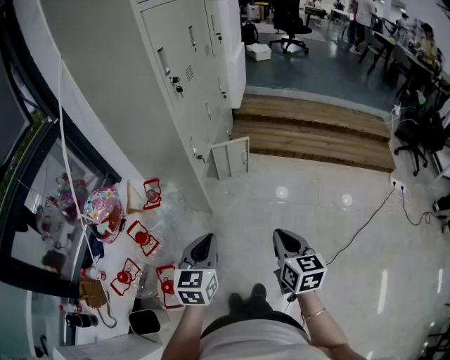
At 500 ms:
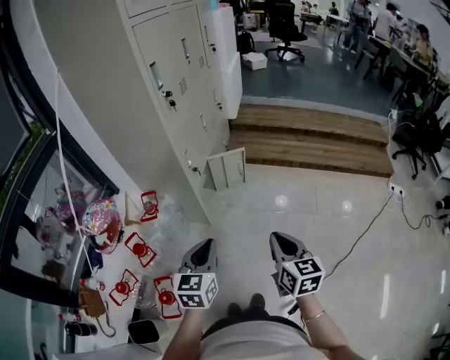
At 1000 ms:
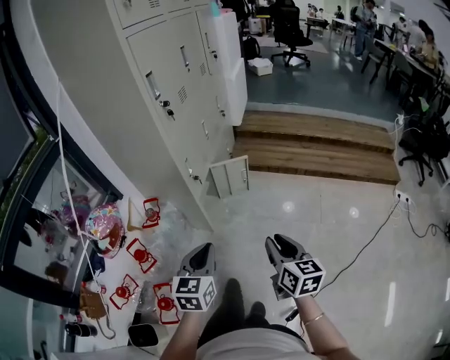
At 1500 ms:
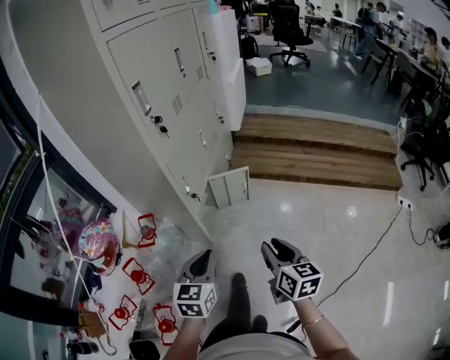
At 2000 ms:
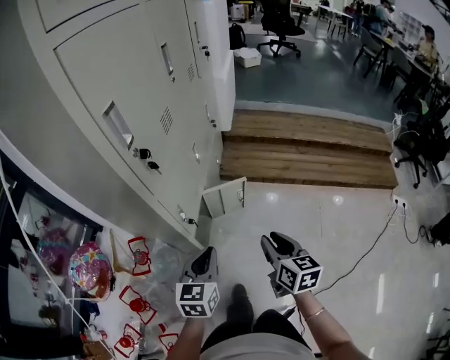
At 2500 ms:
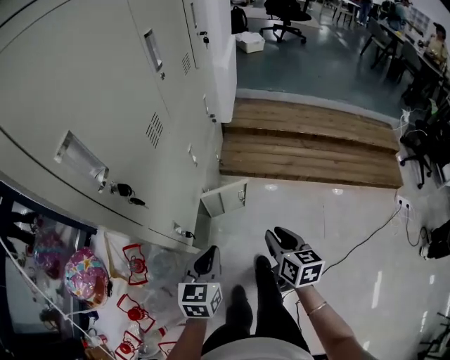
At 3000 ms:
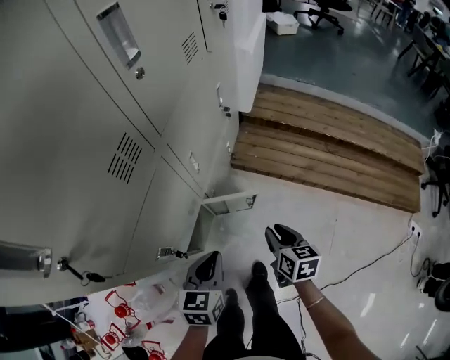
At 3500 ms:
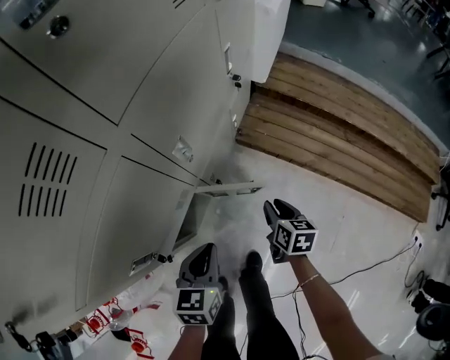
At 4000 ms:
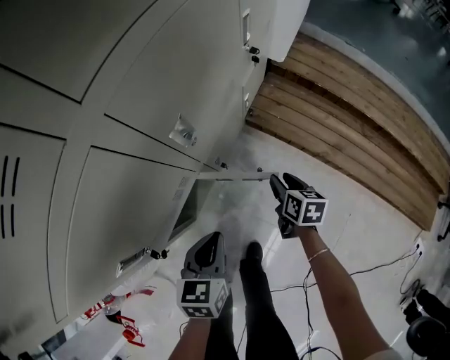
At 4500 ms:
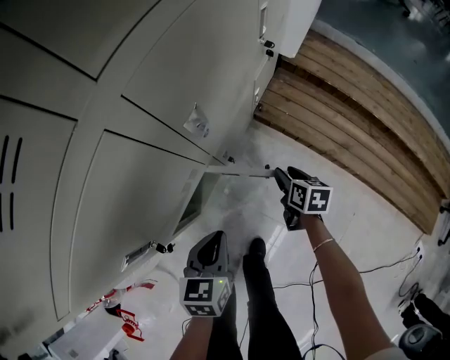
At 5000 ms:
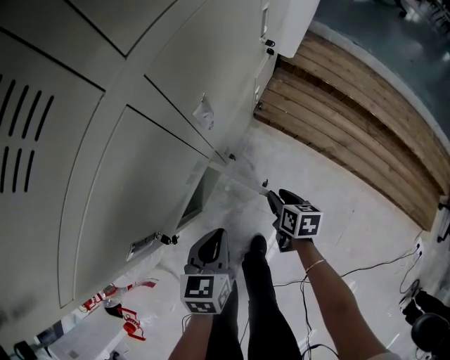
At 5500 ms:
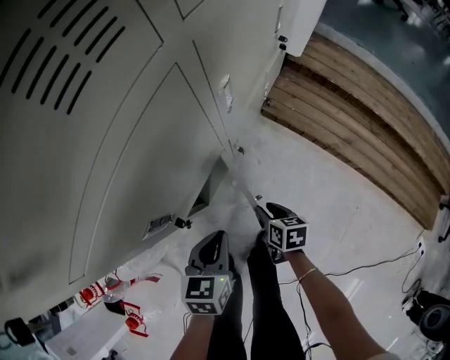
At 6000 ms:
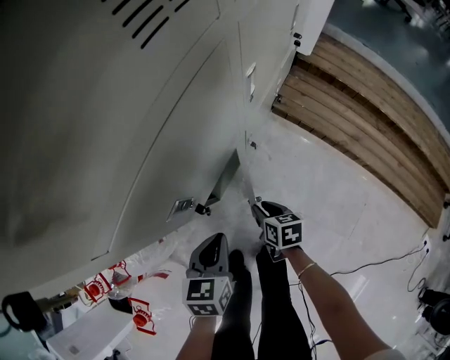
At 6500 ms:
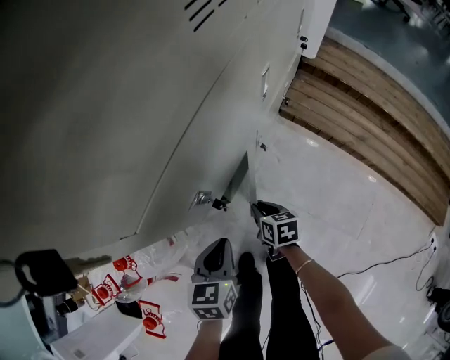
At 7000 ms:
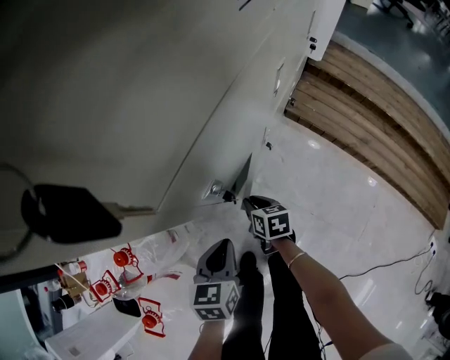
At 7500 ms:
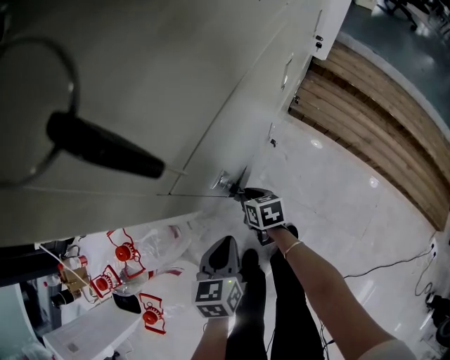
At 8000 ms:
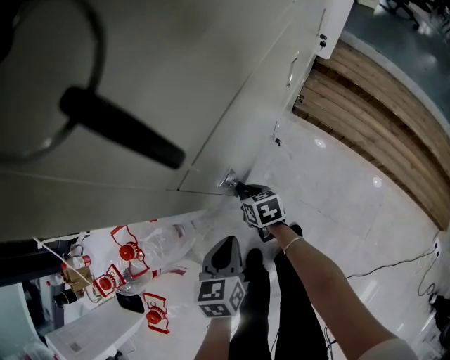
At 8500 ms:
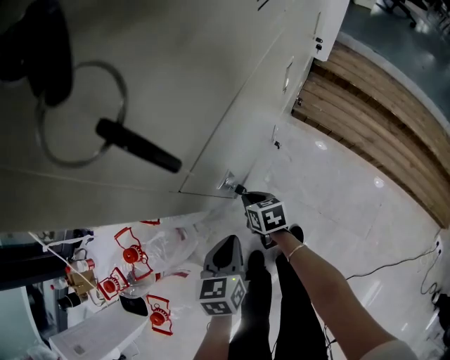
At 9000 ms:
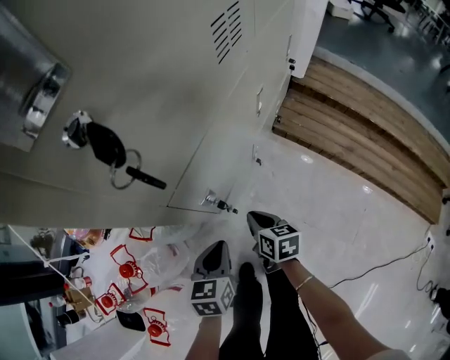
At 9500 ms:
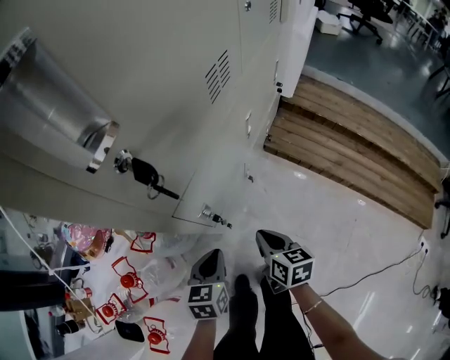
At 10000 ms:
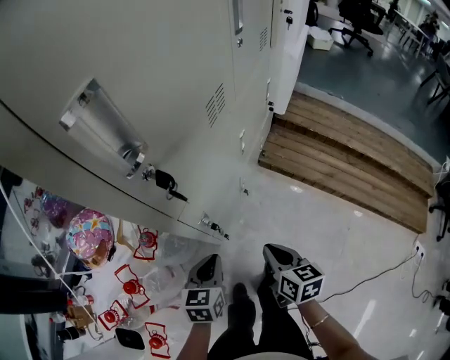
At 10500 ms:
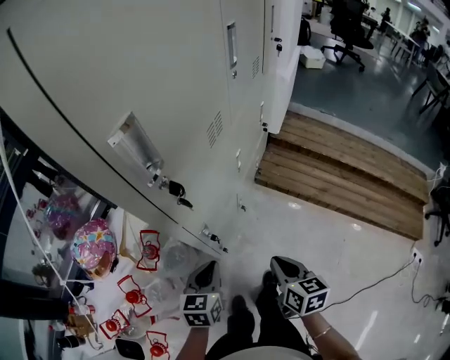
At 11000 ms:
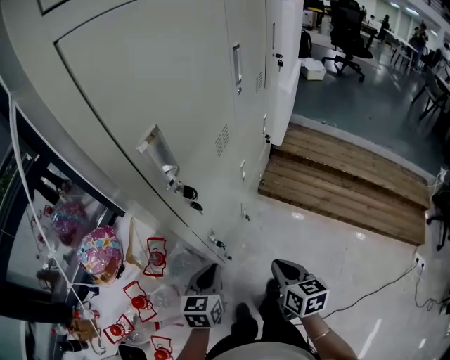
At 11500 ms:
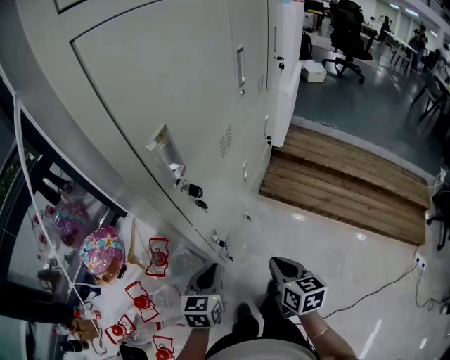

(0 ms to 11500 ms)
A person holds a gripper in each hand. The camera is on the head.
0 ms - 2000 ms: Both grippers move forward, approximately 35 cm. The right gripper opens its fingers.
2000 ms - 4000 ms: Both grippers travel together forward and downward, about 50 cm. The left gripper rotates approximately 30 degrees. Meanwhile the right gripper swivels some 30 degrees.
4000 ms - 6000 ms: The left gripper heads to the left and backward, covering approximately 20 cm. Meanwhile the right gripper heads to the left and backward, covering roughly 30 cm.
6000 ms - 7500 ms: The left gripper is displaced to the left by approximately 10 cm; the right gripper is displaced to the left by approximately 15 cm.
7500 ms - 9500 ms: The left gripper travels upward by some 10 cm, while the right gripper goes some 25 cm upward, to the right and backward.
9500 ms - 11500 ms: The right gripper is displaced upward and backward by about 20 cm; the left gripper travels upward by about 15 cm.

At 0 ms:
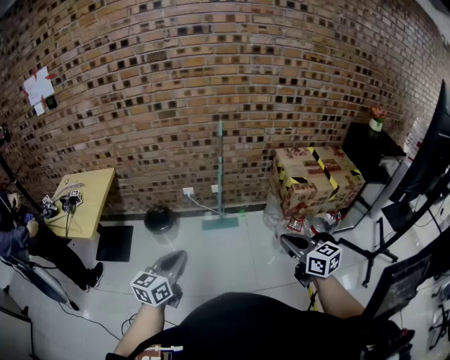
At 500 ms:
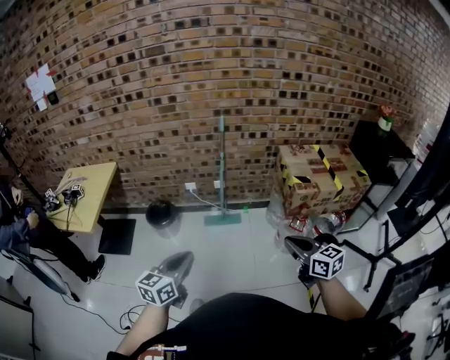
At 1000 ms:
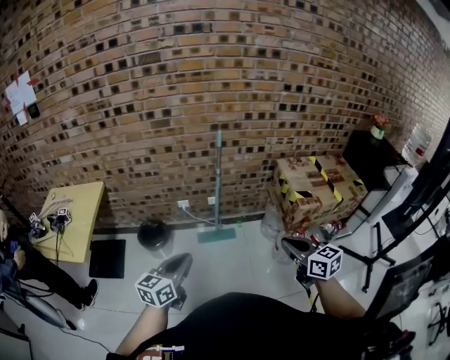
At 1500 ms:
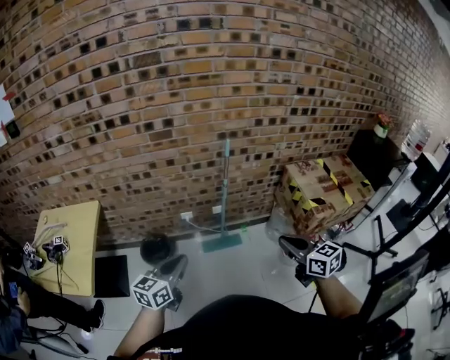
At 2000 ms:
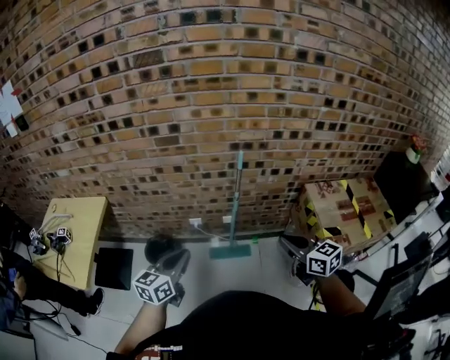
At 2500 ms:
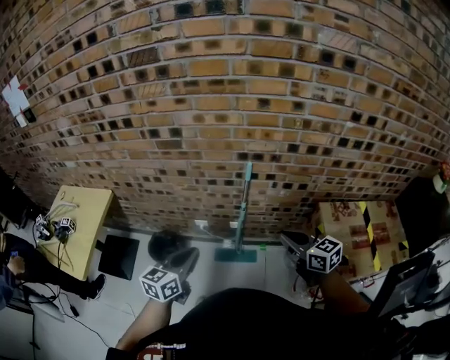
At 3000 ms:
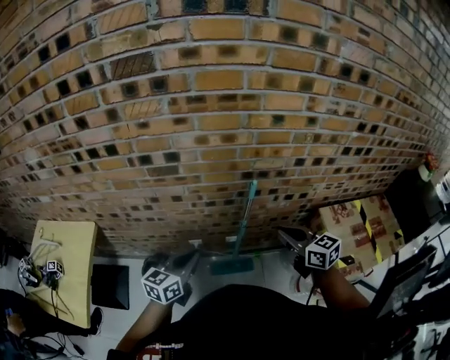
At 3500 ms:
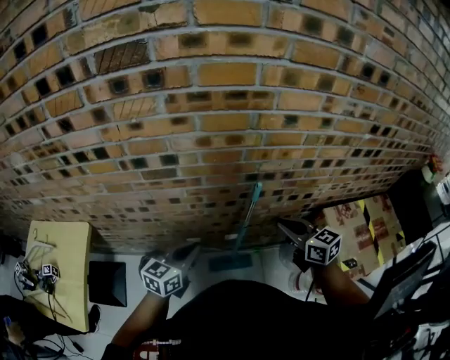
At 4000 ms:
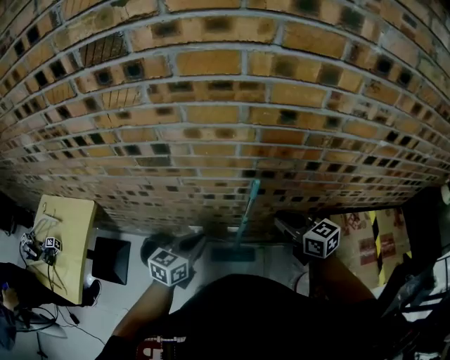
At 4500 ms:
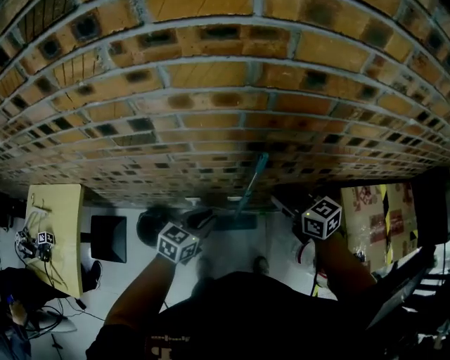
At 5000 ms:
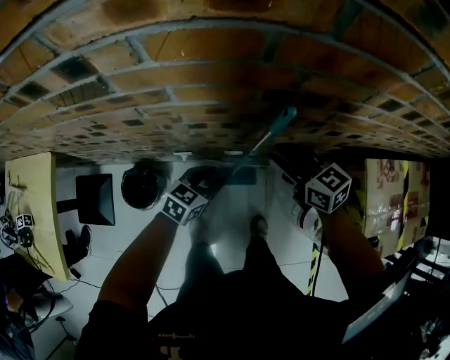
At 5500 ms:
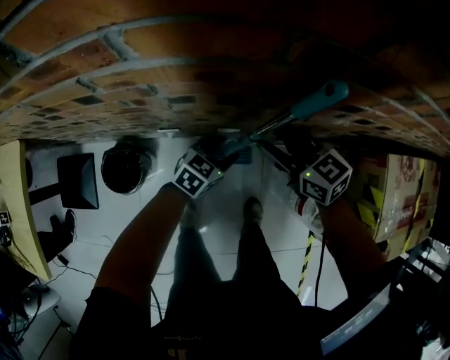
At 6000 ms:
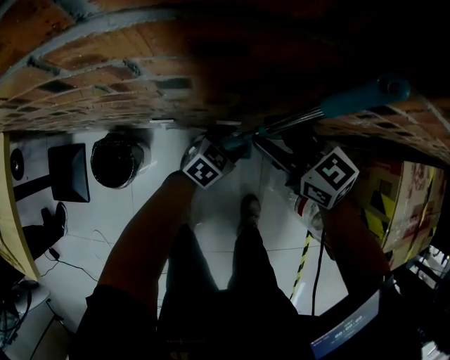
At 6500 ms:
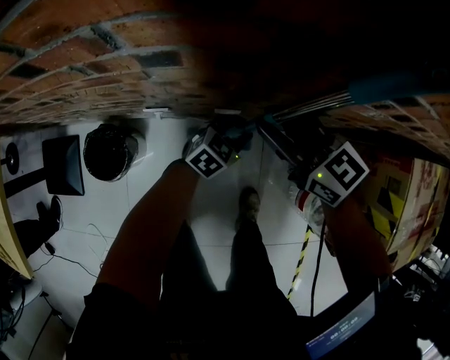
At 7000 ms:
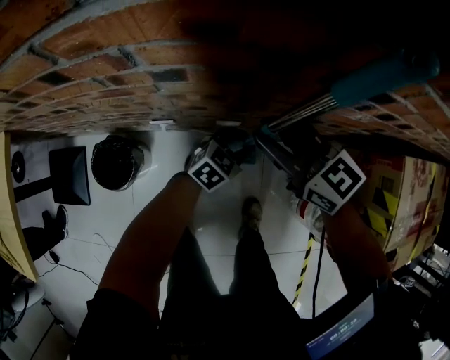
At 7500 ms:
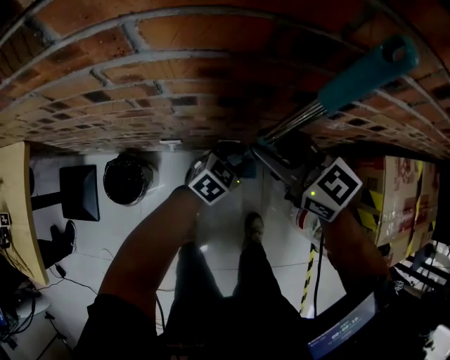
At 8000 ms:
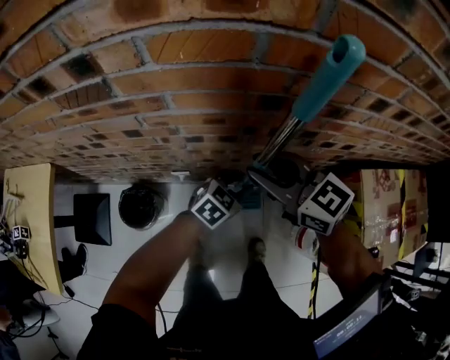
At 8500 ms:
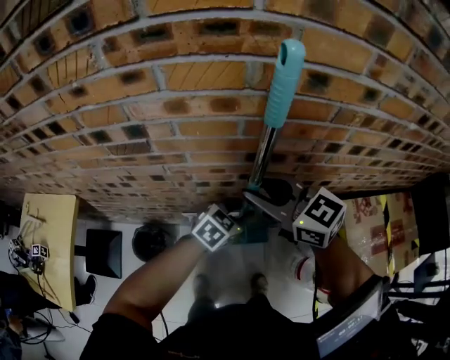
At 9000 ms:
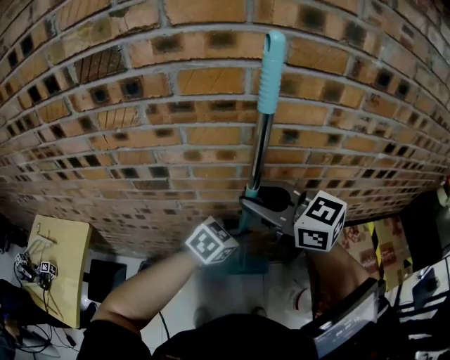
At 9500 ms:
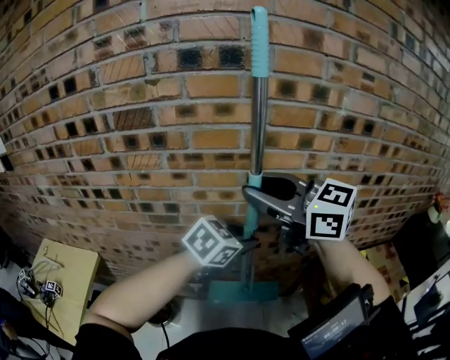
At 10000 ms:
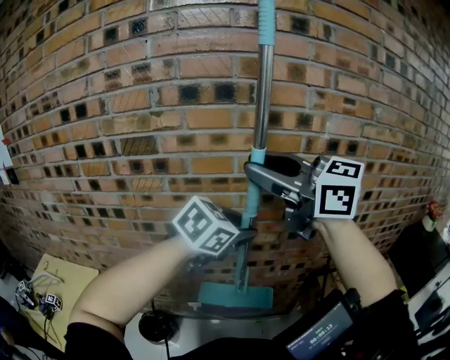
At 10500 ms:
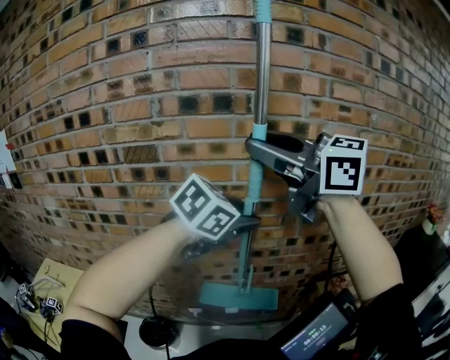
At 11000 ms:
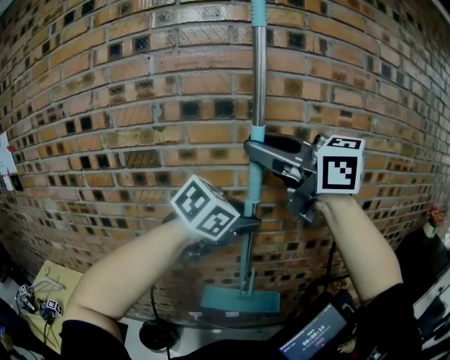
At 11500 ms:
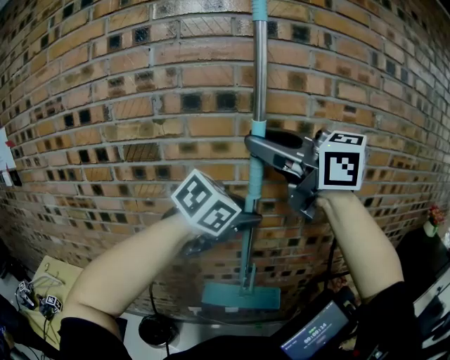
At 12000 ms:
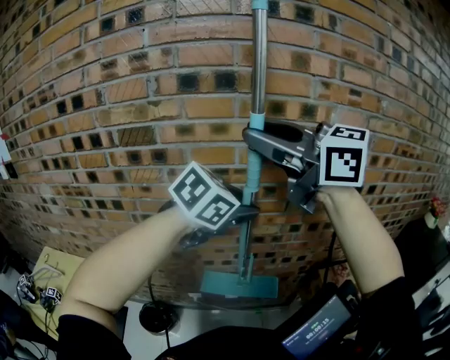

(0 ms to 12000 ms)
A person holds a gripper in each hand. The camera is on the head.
0 ms - 2000 ms: Both grippers travel together forward, roughly 35 cm.
2000 ms - 4000 ms: The grippers both shift forward by about 30 cm.
4000 ms - 6000 ms: Both grippers move downward, roughly 35 cm. The left gripper changes its angle by approximately 30 degrees, and opens up; the right gripper opens its fingers.
6000 ms - 8000 ms: Both grippers move upward, about 20 cm.
8000 ms - 10000 ms: The grippers both shift upward by about 50 cm. The right gripper turns by roughly 20 degrees.

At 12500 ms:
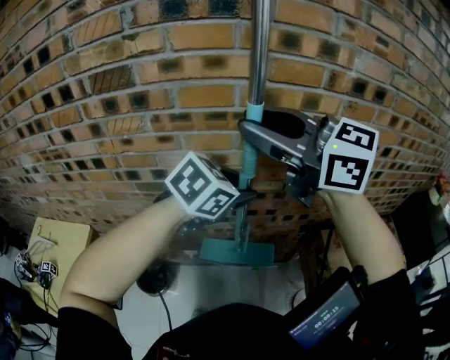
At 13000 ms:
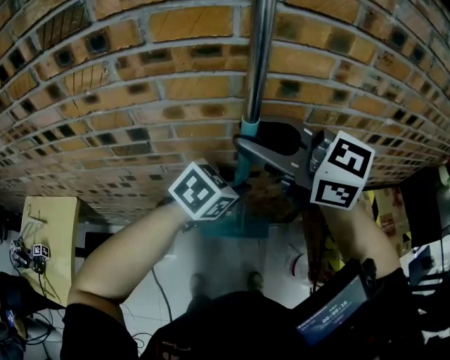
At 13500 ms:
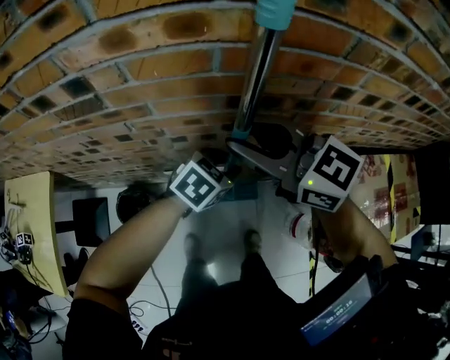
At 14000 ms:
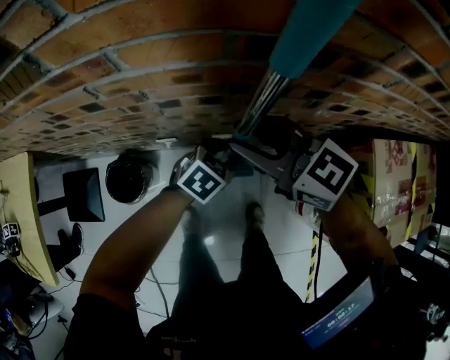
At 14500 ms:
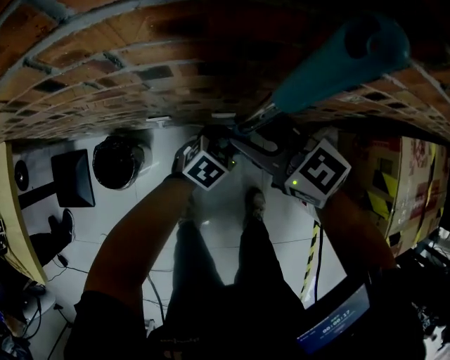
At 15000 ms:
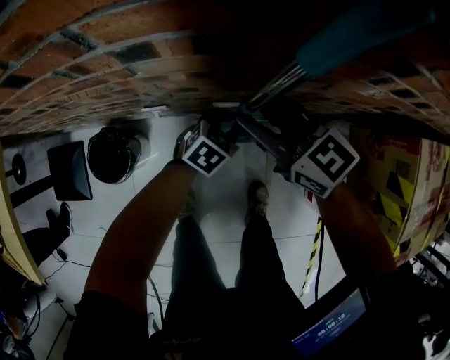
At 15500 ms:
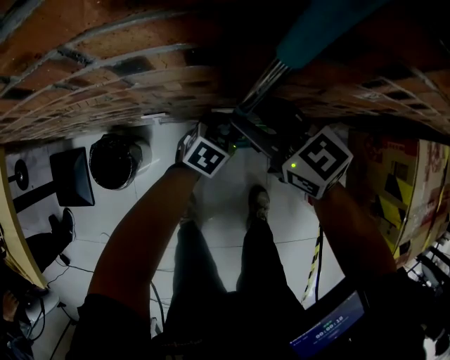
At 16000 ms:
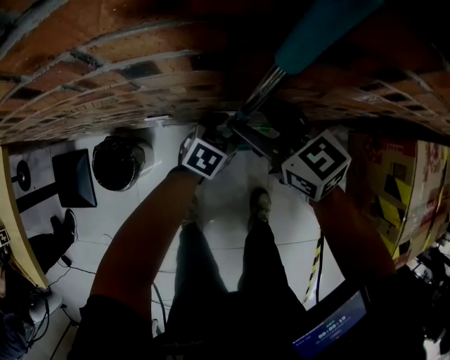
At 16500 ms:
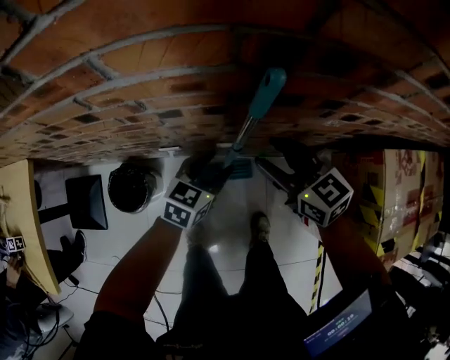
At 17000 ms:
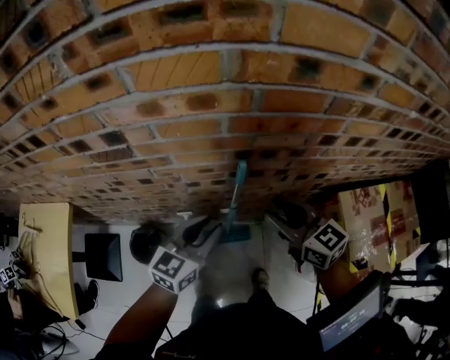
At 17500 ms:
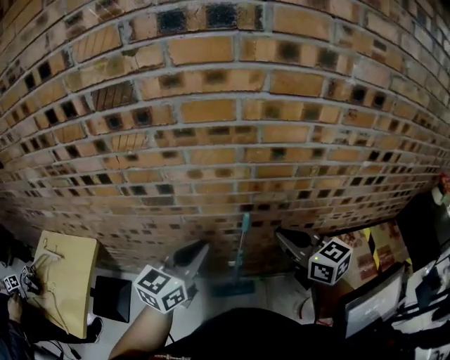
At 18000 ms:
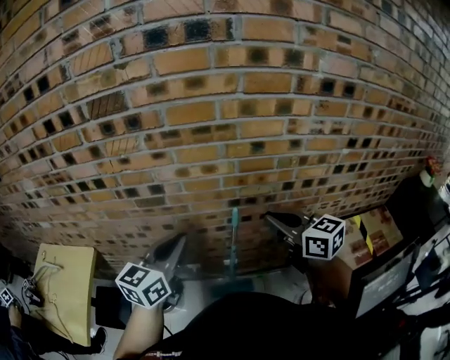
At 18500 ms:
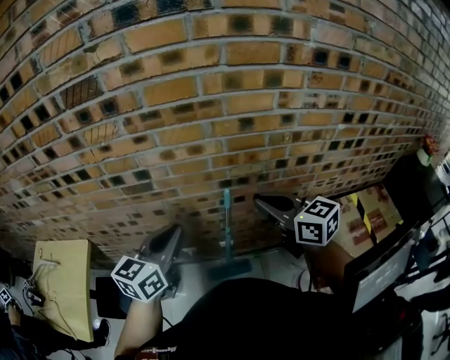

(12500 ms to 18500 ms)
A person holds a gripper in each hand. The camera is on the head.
12500 ms - 14500 ms: Both grippers travel together downward, roughly 60 cm. The right gripper swivels some 20 degrees; the left gripper rotates roughly 20 degrees.
14500 ms - 16500 ms: The left gripper heads upward, covering roughly 10 cm, turns by some 20 degrees, and opens up. Meanwhile the right gripper shifts about 5 cm to the right, and opens its fingers.
16500 ms - 18500 ms: The grippers both shift upward by roughly 40 cm. The right gripper closes its fingers; the left gripper swivels about 30 degrees, and closes up.
